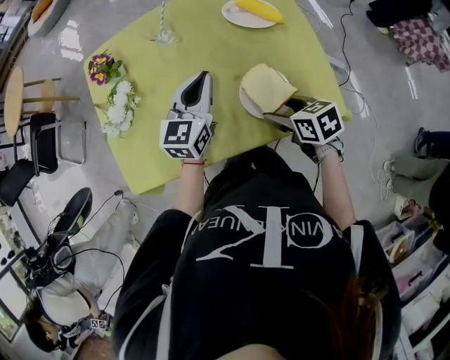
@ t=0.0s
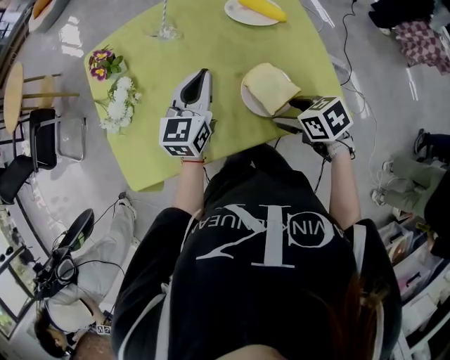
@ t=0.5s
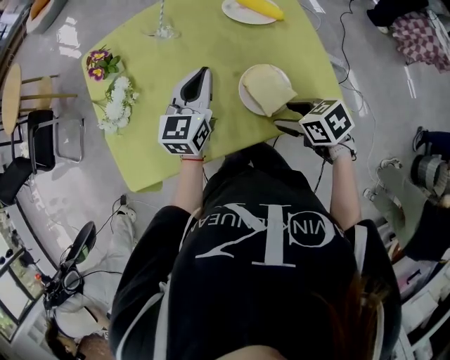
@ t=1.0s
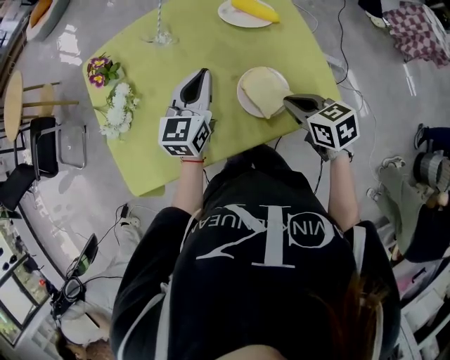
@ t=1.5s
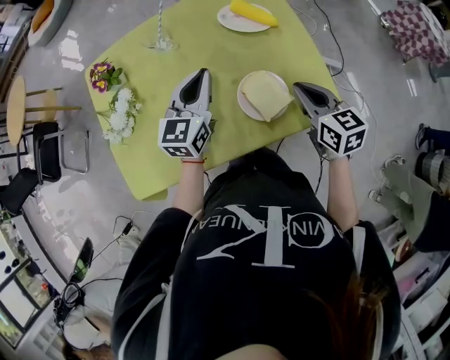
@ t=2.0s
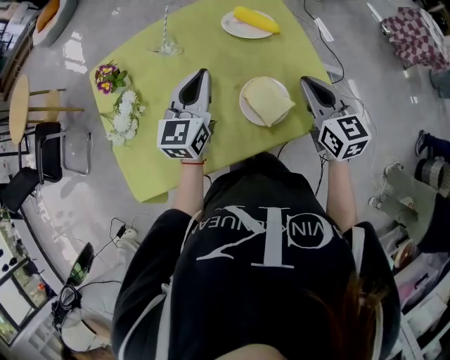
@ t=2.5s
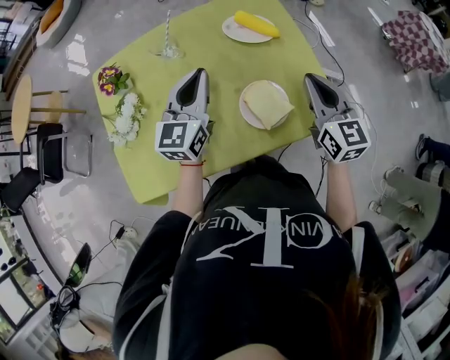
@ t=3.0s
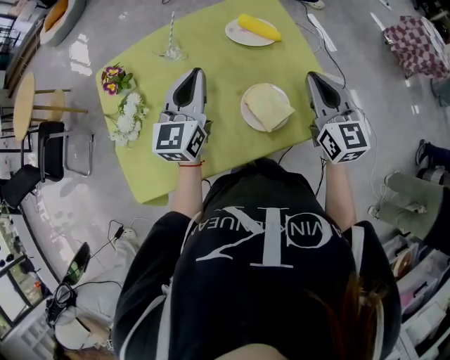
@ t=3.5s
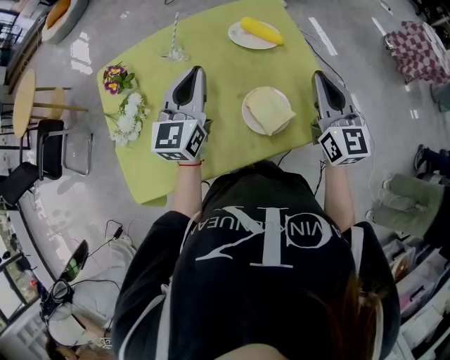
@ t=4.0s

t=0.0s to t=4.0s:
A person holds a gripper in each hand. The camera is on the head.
t=0.0s to t=2.0s: The right gripper goes some 10 cm upward and to the right, rotates roughly 30 degrees, and closes up.
t=2.0s to t=4.0s: The left gripper heads upward, covering roughly 5 cm, while the right gripper is displaced upward by approximately 10 cm, and changes its angle by about 30 degrees.

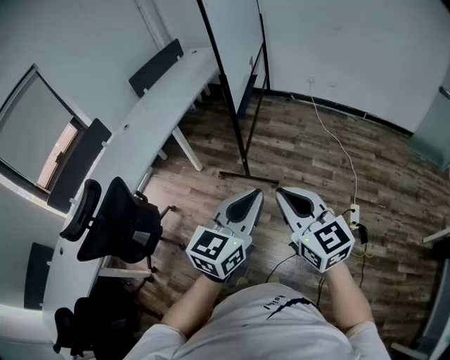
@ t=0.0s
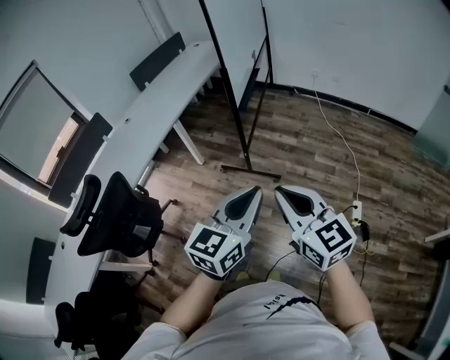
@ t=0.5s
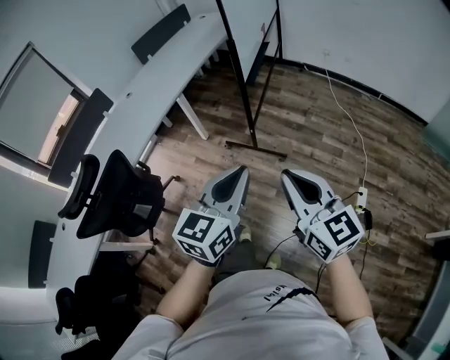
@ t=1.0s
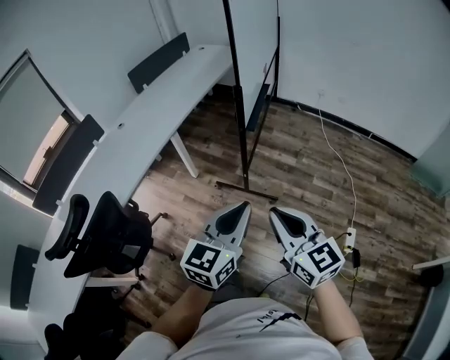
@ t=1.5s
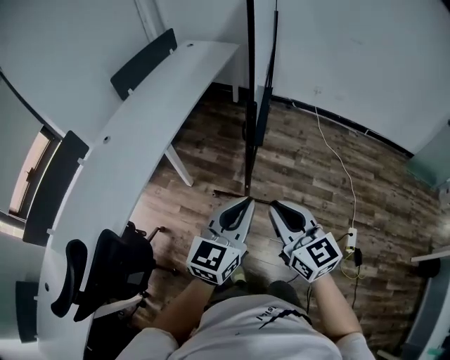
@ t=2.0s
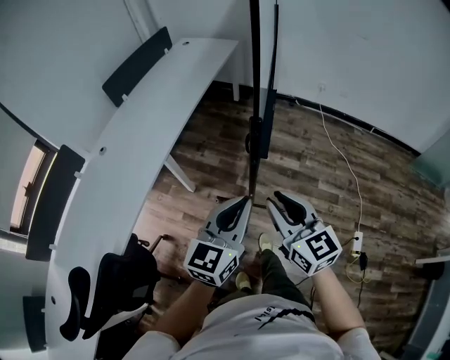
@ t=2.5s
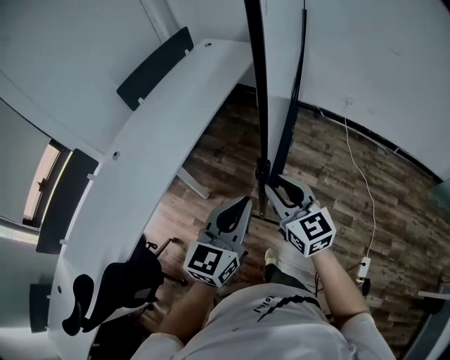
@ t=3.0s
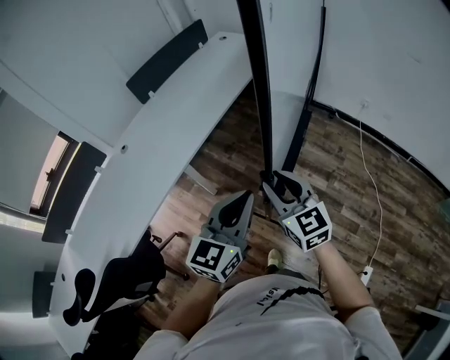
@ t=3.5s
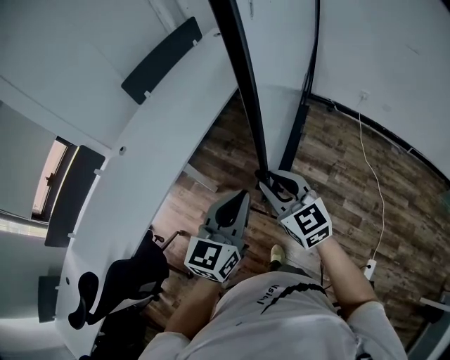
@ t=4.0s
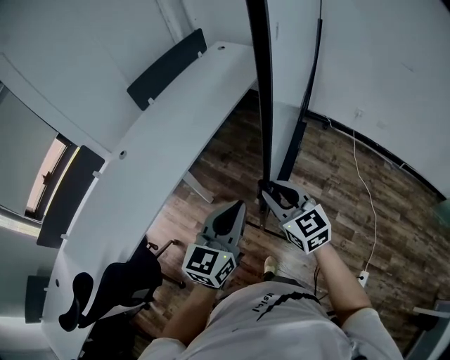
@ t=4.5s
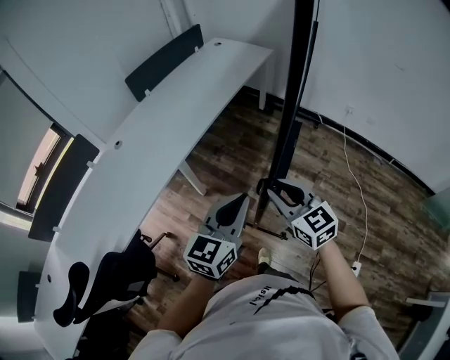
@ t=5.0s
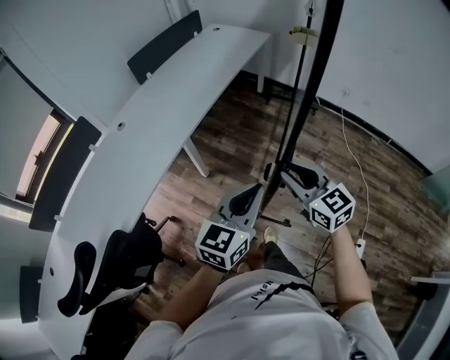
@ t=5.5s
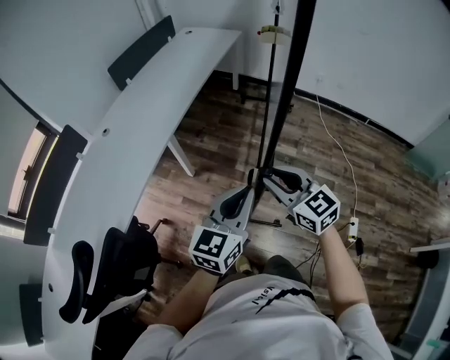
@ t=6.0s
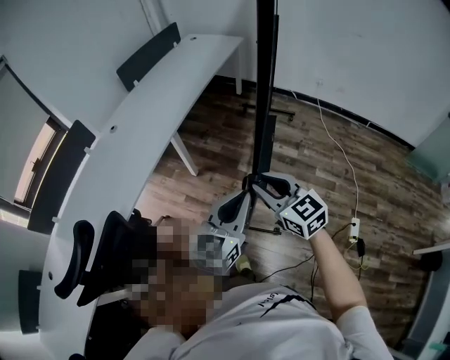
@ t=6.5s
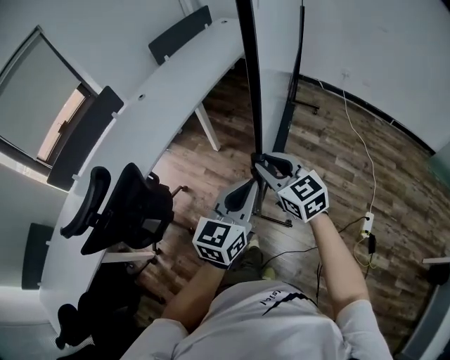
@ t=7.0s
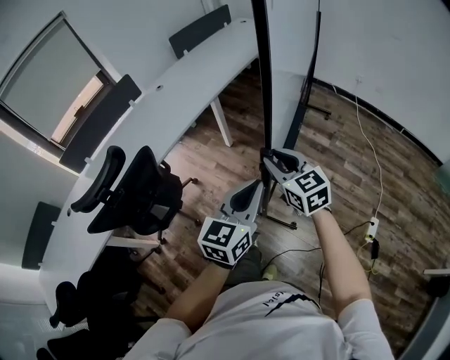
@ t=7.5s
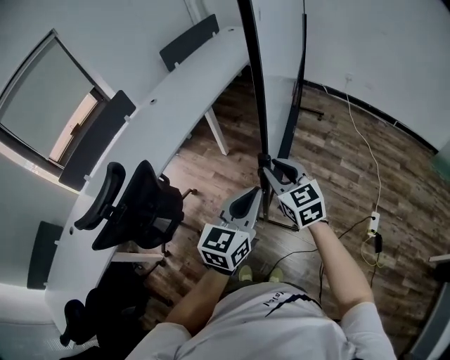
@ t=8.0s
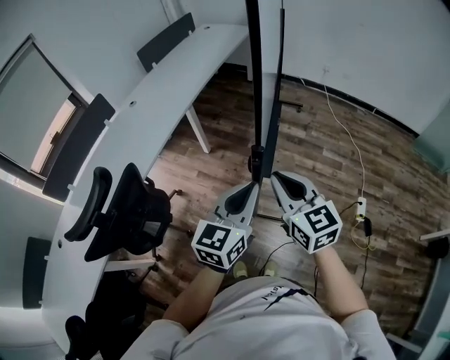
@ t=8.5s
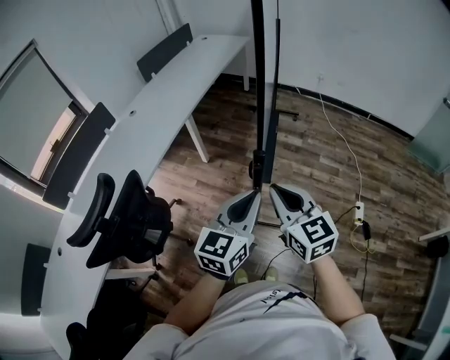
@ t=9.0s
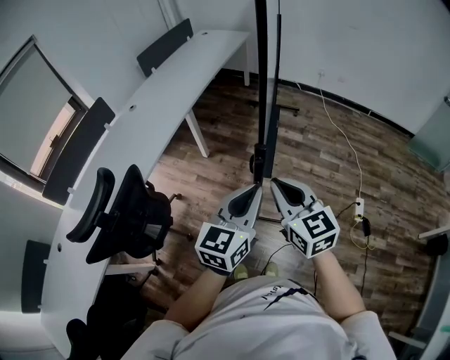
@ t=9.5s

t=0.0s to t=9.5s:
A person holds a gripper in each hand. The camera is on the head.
t=0.0s to t=2.0s: The two grippers go about 30 cm forward and to the left.
t=2.0s to t=4.0s: The two grippers go approximately 30 cm forward.
t=4.0s to t=5.5s: The left gripper moves backward and to the left, some 15 cm. Meanwhile the right gripper shifts about 15 cm backward.
t=5.5s to t=7.5s: The two grippers go roughly 30 cm backward.
t=7.5s to t=9.5s: The left gripper moves about 5 cm; the right gripper heads backward and upward, covering roughly 15 cm.

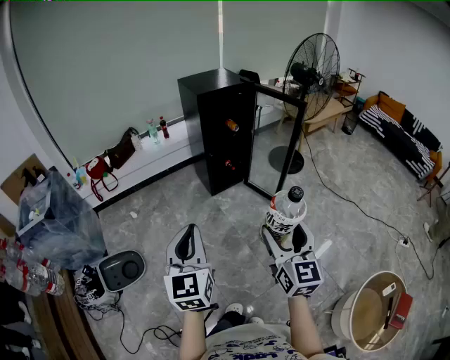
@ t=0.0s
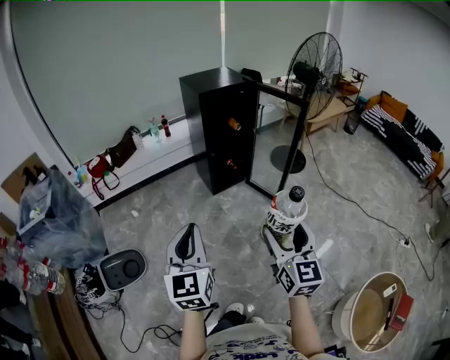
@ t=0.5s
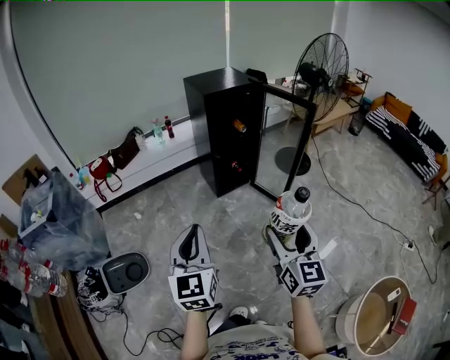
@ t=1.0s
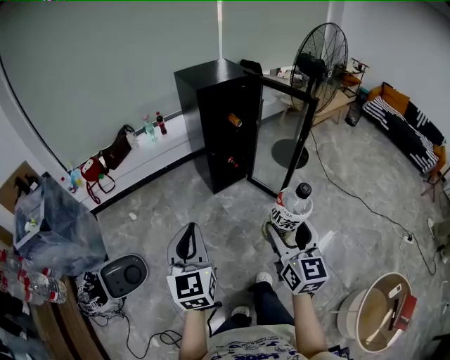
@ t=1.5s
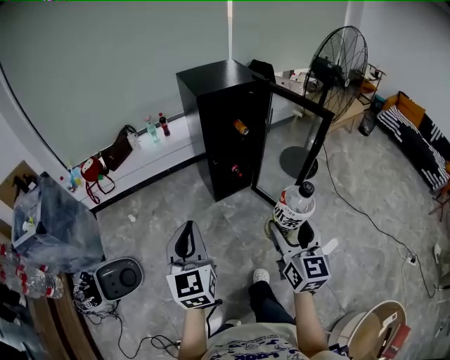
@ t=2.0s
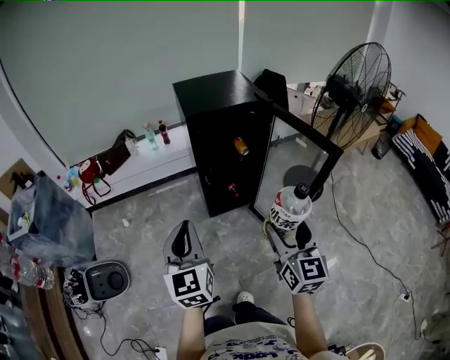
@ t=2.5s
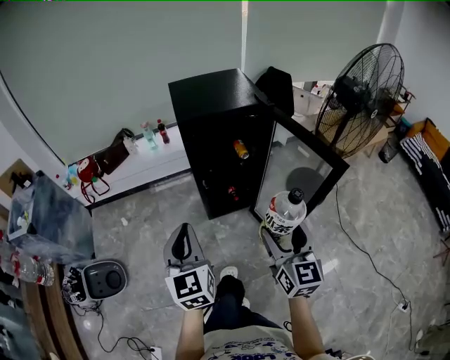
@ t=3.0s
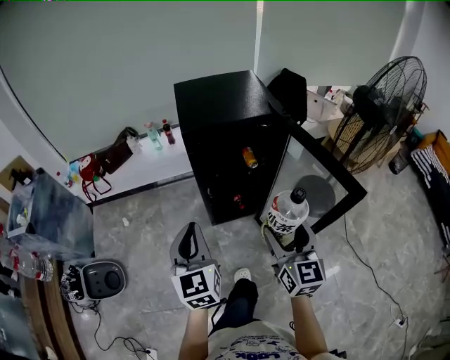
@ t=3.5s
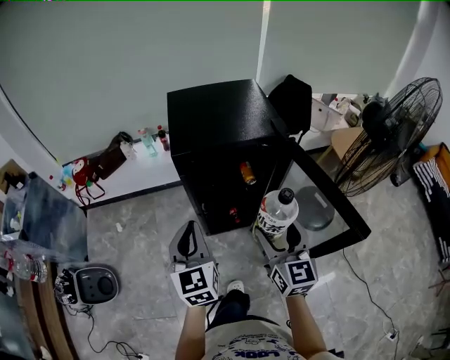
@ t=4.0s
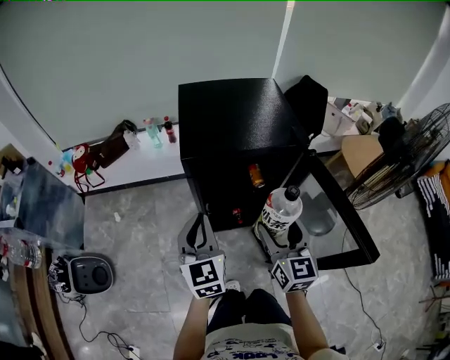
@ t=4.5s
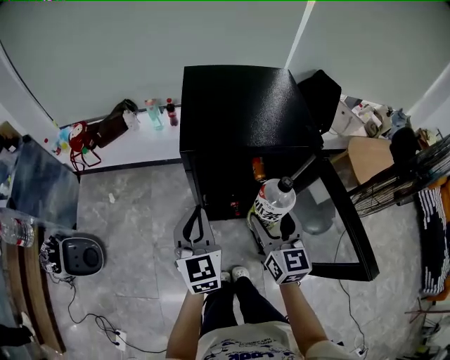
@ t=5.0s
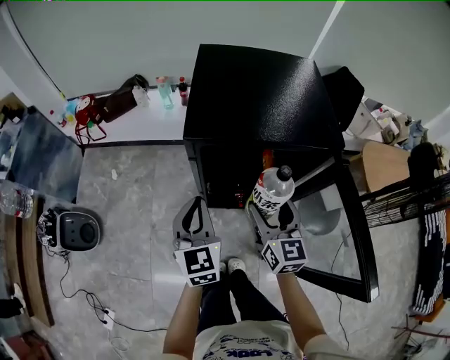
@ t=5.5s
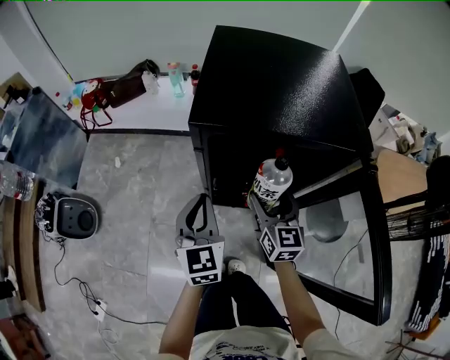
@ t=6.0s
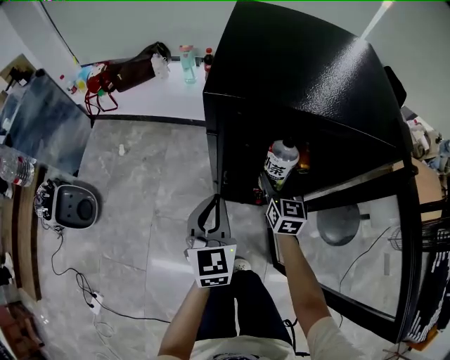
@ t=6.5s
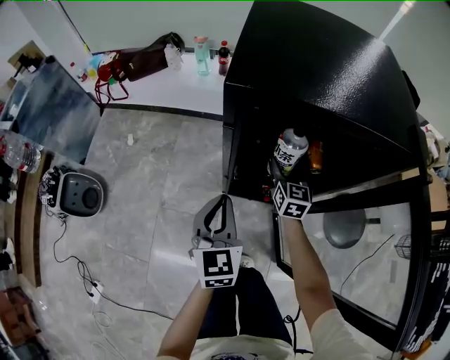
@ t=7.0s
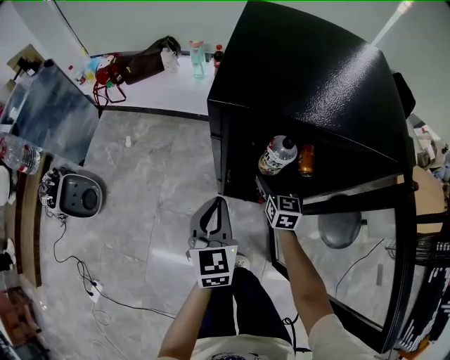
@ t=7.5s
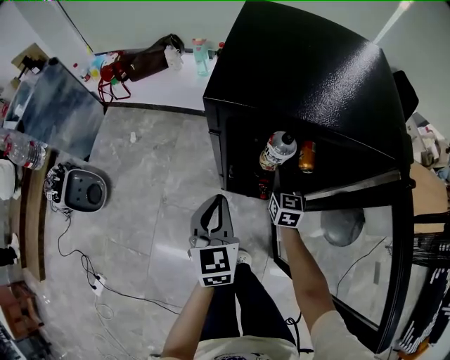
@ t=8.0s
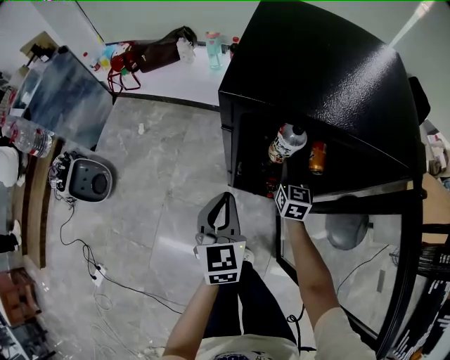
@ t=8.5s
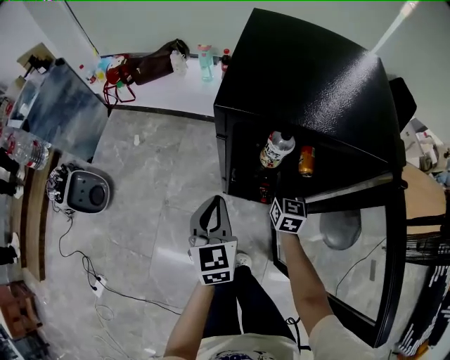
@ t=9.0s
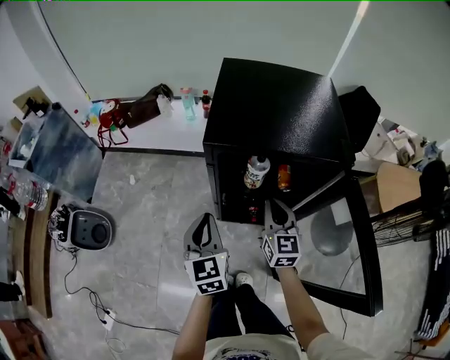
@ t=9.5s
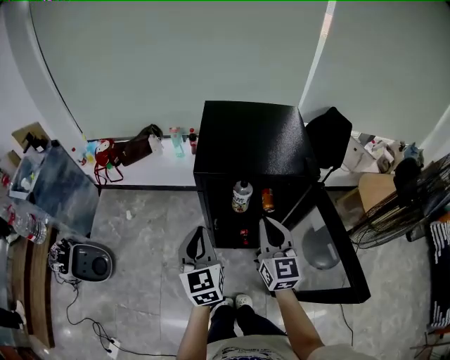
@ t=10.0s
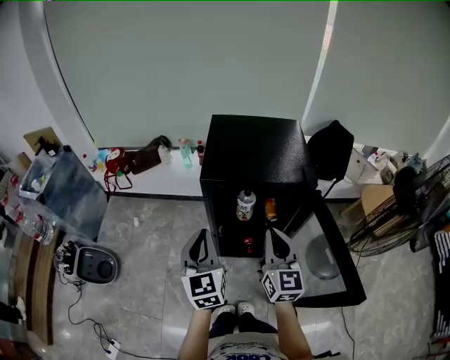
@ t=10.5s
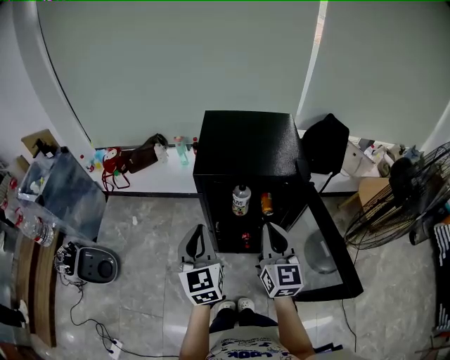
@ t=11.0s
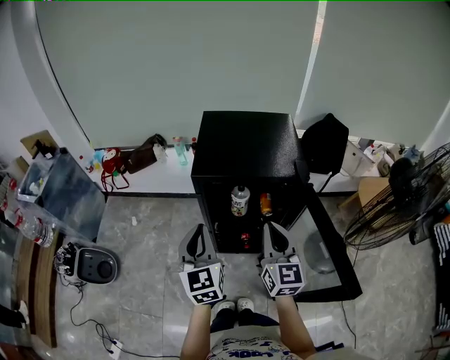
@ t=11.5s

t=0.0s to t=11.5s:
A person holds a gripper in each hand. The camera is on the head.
t=0.0s to t=2.0s: Both grippers travel together forward, some 25 cm.
t=2.0s to t=4.0s: The two grippers travel together, forward and to the right, approximately 50 cm.
t=4.0s to t=6.0s: The right gripper moves forward and downward, approximately 30 cm, while the left gripper moves downward and forward, about 20 cm.
t=6.0s to t=7.5s: The right gripper shifts about 20 cm downward and forward; the left gripper heads downward, covering about 10 cm.
t=7.5s to t=9.5s: The right gripper goes roughly 25 cm upward and backward, and closes; the left gripper heads upward, covering about 10 cm.
t=9.5s to t=11.5s: The left gripper heads upward, covering some 15 cm, while the right gripper heads upward and backward, covering roughly 20 cm.

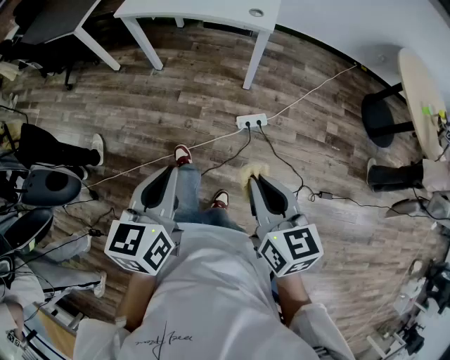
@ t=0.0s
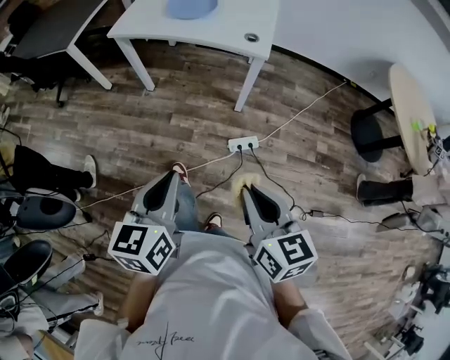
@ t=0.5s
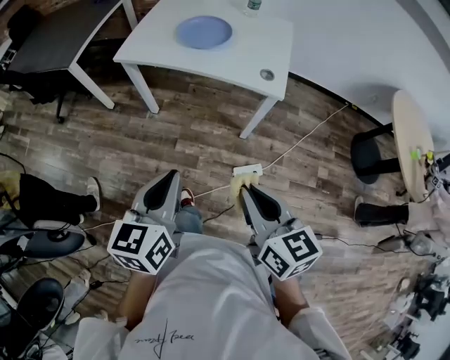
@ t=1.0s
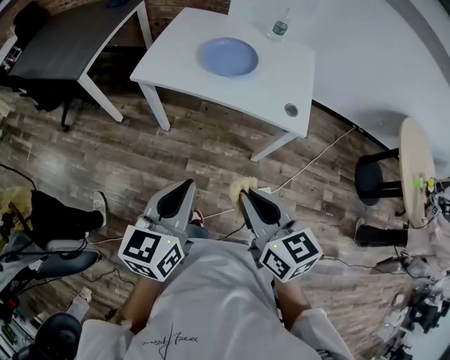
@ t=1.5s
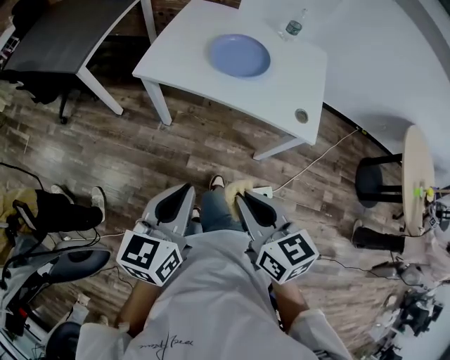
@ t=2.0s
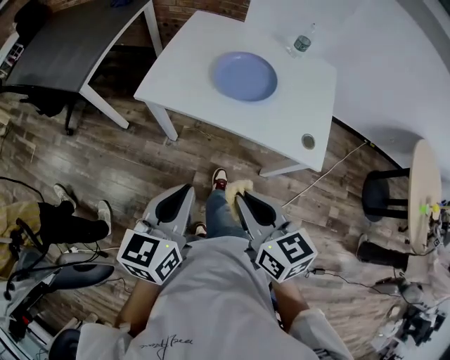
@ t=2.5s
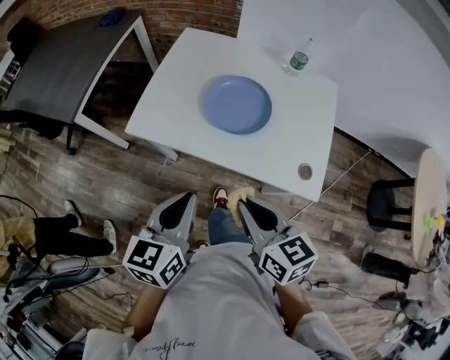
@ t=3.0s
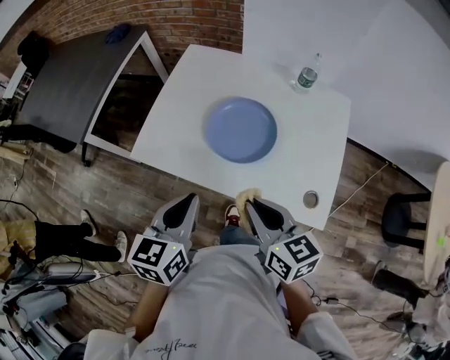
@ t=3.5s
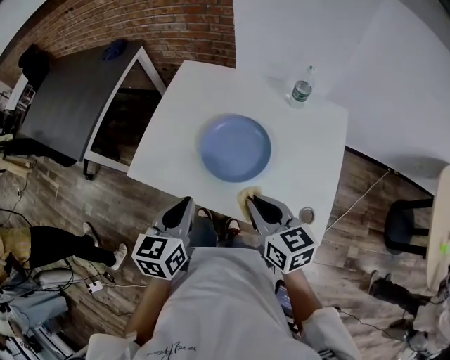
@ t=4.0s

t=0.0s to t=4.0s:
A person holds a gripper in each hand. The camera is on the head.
t=0.0s to t=2.0s: The grippers both shift forward and to the left by approximately 40 cm.
t=2.0s to t=4.0s: The grippers both shift forward by some 35 cm.
